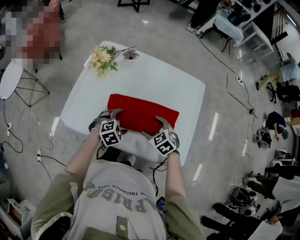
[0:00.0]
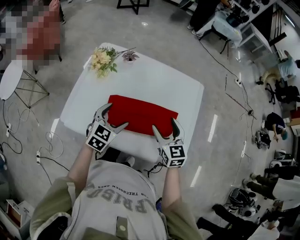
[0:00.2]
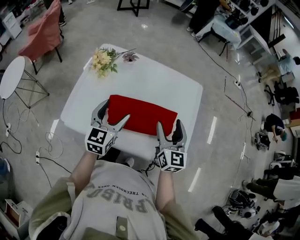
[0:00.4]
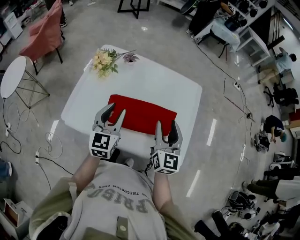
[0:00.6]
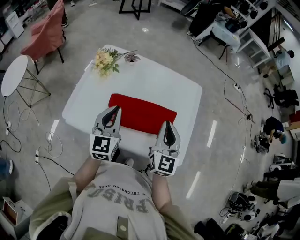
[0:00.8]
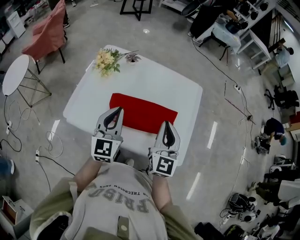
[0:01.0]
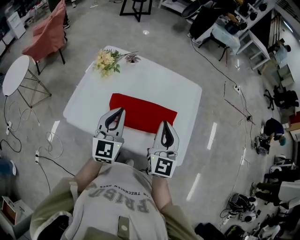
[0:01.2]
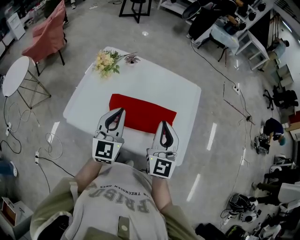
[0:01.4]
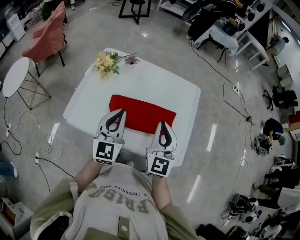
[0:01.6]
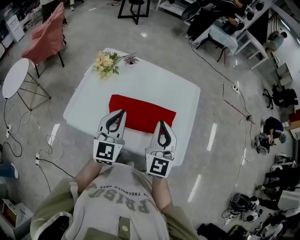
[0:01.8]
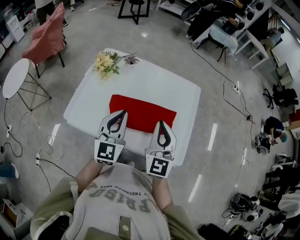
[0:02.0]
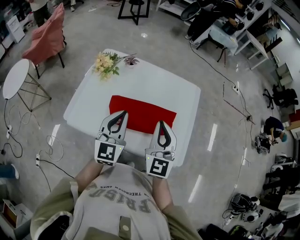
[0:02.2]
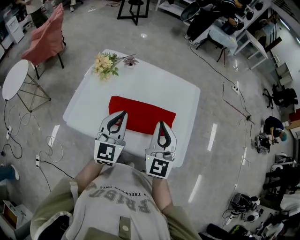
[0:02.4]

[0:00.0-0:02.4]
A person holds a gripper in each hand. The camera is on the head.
0.0 to 1.2 s: Both grippers travel together upward, some 25 cm. The left gripper tips its fingers upward by about 60 degrees, and closes, while the right gripper tips its fingers upward by about 50 degrees, and closes.
1.2 to 2.4 s: The grippers make only small movements.

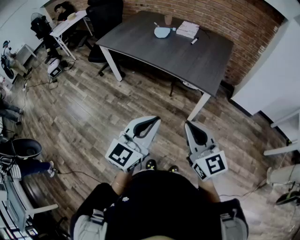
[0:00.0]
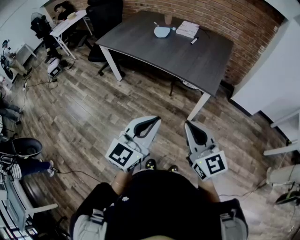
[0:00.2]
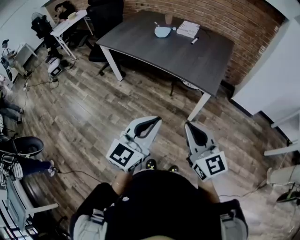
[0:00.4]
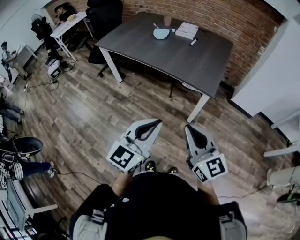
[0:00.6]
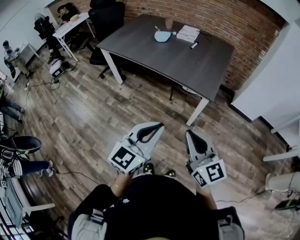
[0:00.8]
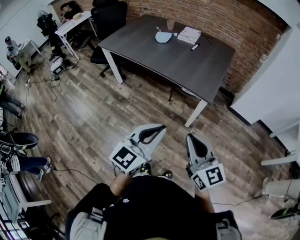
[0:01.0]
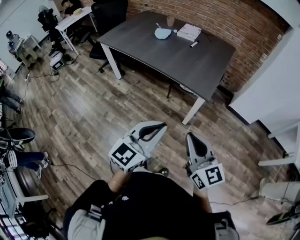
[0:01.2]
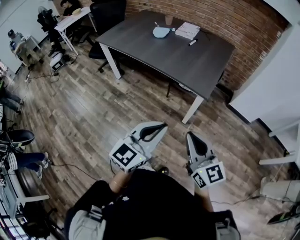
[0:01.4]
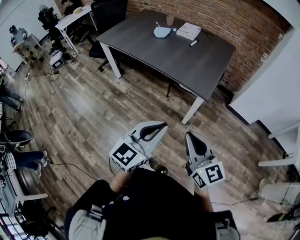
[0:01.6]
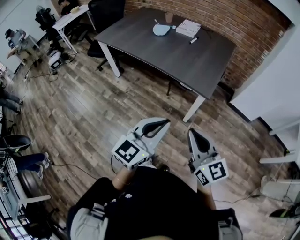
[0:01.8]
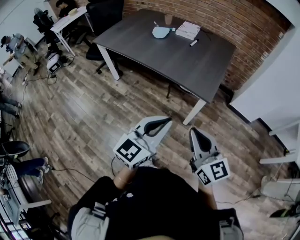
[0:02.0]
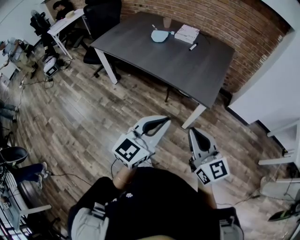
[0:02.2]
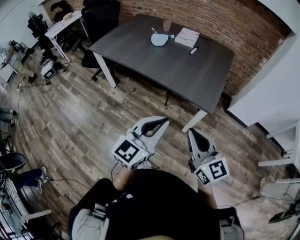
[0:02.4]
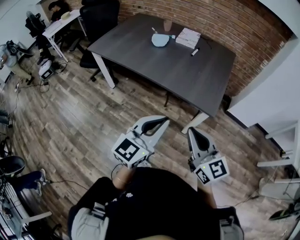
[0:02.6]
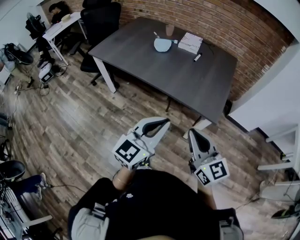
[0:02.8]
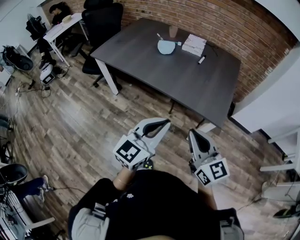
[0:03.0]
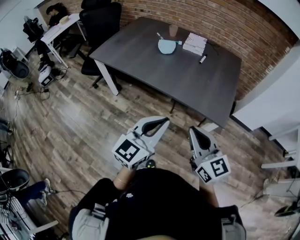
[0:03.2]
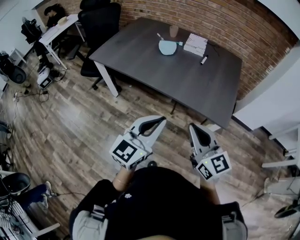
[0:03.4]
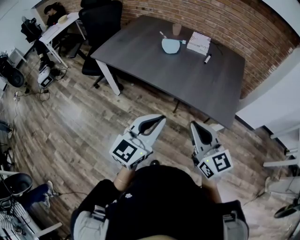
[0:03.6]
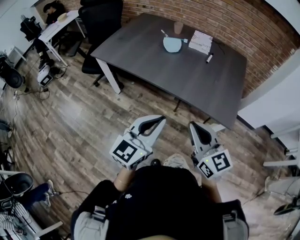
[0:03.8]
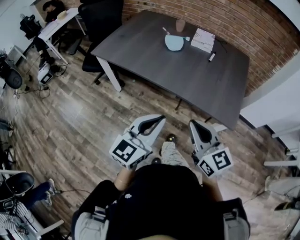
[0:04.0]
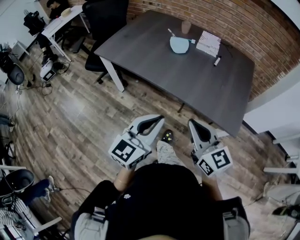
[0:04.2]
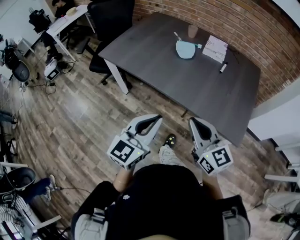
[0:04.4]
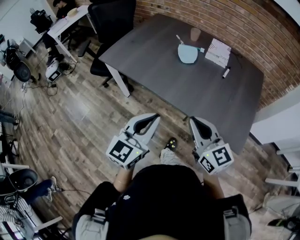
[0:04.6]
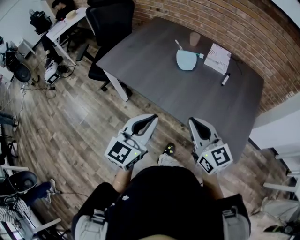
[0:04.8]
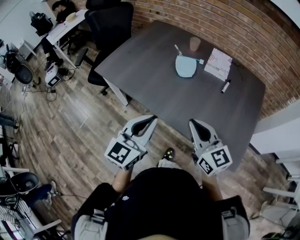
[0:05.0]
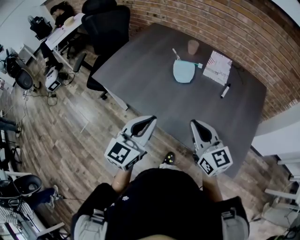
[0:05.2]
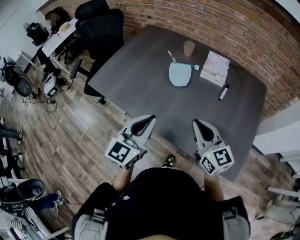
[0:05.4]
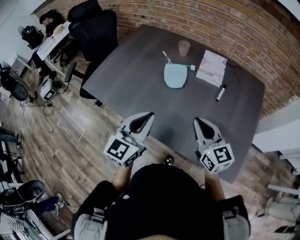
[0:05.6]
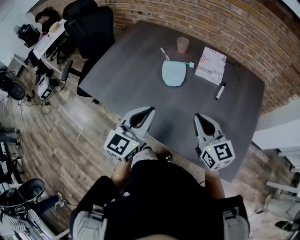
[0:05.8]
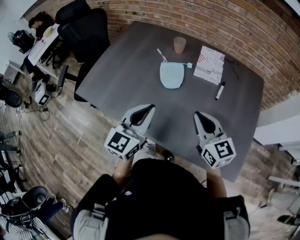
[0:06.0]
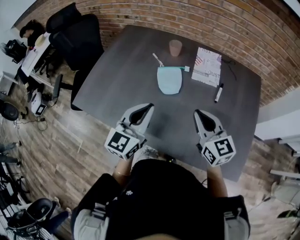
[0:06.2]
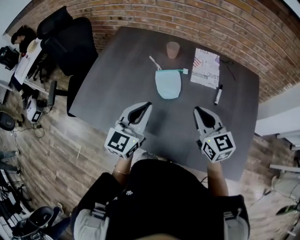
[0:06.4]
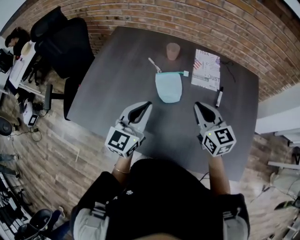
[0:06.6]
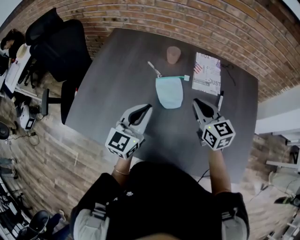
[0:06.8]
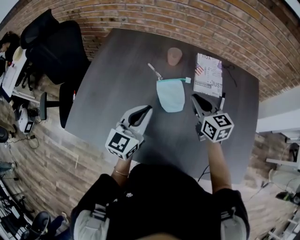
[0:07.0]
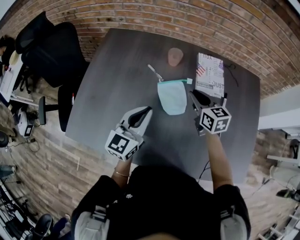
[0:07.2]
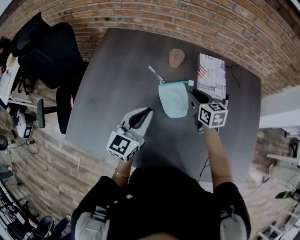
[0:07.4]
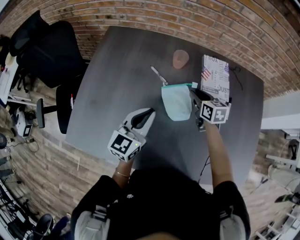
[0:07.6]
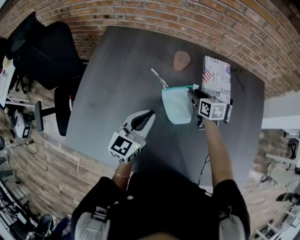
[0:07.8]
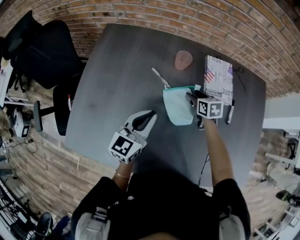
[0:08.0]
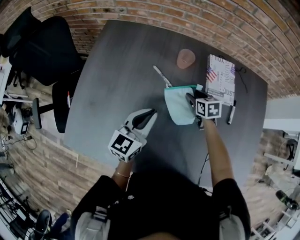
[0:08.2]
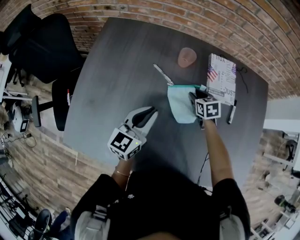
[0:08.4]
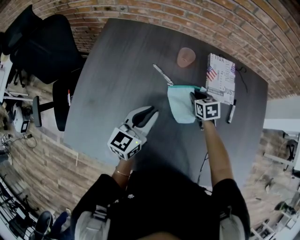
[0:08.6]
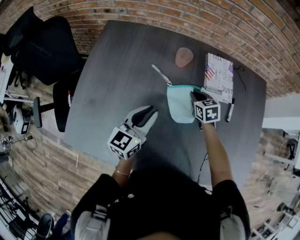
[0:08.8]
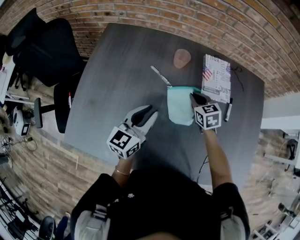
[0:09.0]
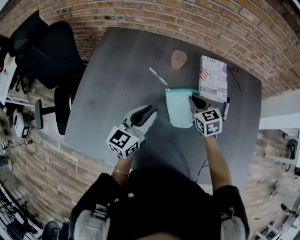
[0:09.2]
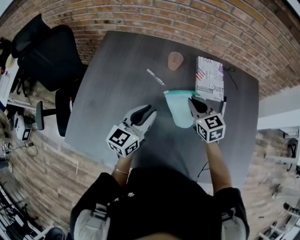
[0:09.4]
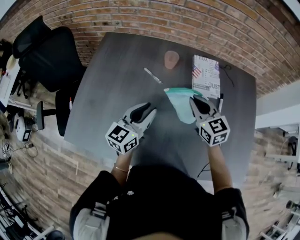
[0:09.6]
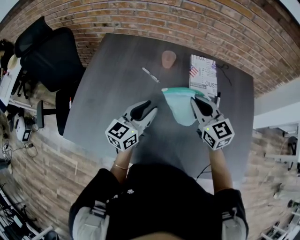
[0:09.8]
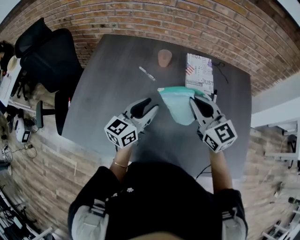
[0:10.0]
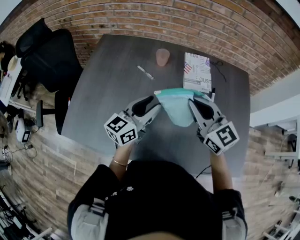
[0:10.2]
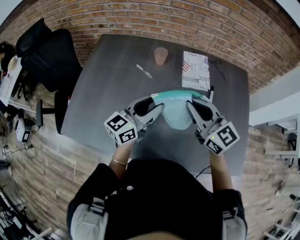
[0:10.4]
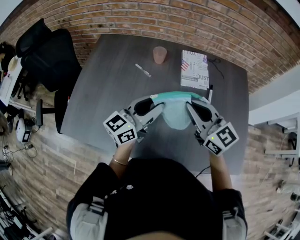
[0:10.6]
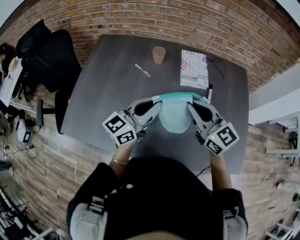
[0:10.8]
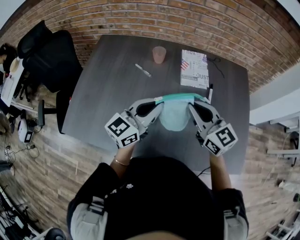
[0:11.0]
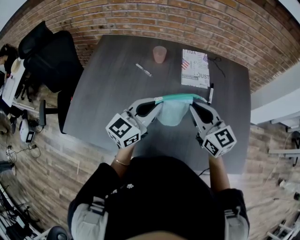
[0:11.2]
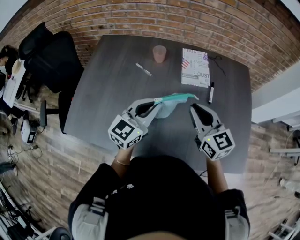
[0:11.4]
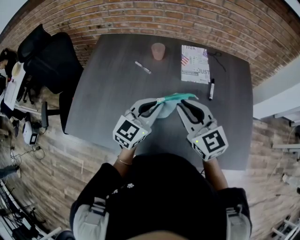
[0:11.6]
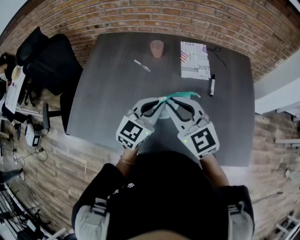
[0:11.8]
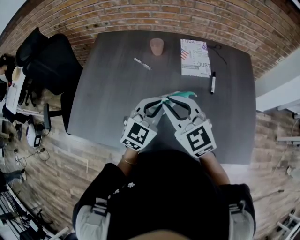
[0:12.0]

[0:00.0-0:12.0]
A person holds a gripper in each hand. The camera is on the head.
0.0 to 1.6 s: The grippers both shift to the right by approximately 10 cm.
1.6 to 3.0 s: Both grippers travel together forward and to the left, roughly 25 cm.
3.0 to 4.4 s: The left gripper goes approximately 20 cm to the left and forward, while the right gripper moves forward and to the left, about 20 cm.
4.4 to 6.0 s: Both grippers move forward, some 35 cm.
6.0 to 7.6 s: The left gripper moves forward and to the left, approximately 25 cm. Meanwhile the right gripper heads forward and downward, covering some 35 cm, swivels about 40 degrees, and opens up.
7.6 to 9.0 s: The right gripper moves some 10 cm downward and comes back, and closes up.
9.0 to 10.4 s: The left gripper is displaced to the right, upward and backward by some 15 cm. The right gripper moves upward and backward, about 30 cm, and tilts its fingers approximately 40 degrees upward.
10.4 to 12.0 s: The left gripper heads to the right, covering roughly 5 cm, turns by approximately 40 degrees, and closes. The right gripper moves to the left, about 5 cm.

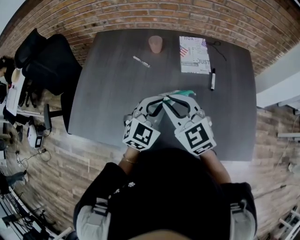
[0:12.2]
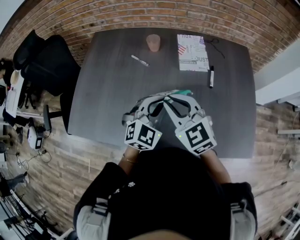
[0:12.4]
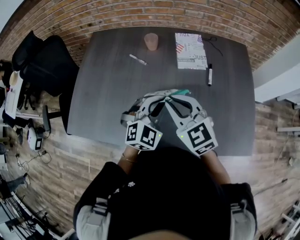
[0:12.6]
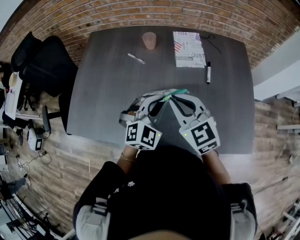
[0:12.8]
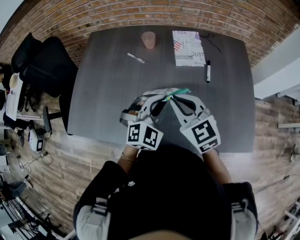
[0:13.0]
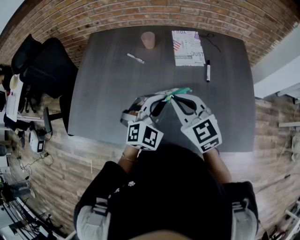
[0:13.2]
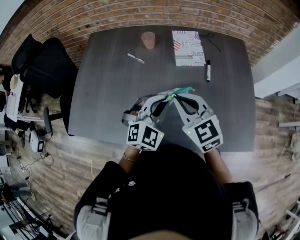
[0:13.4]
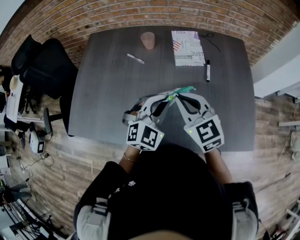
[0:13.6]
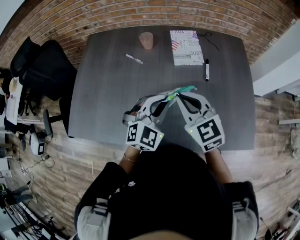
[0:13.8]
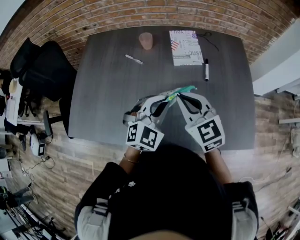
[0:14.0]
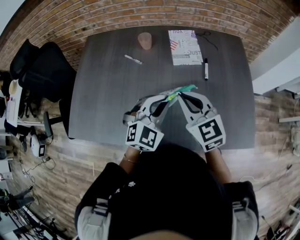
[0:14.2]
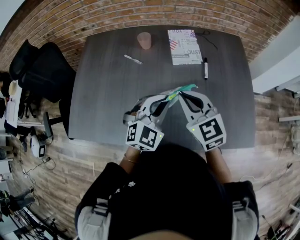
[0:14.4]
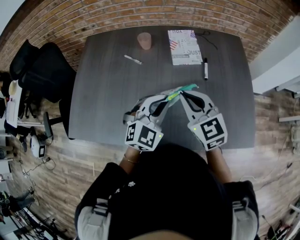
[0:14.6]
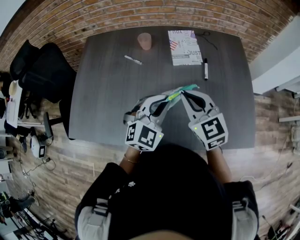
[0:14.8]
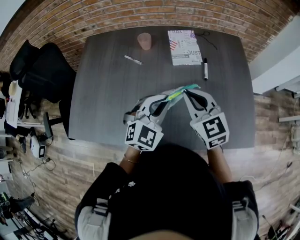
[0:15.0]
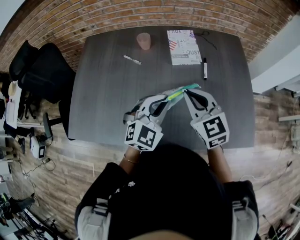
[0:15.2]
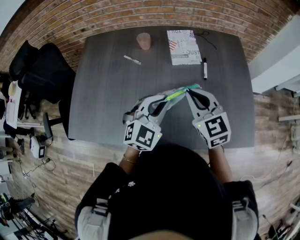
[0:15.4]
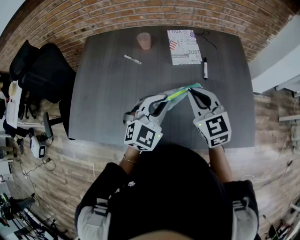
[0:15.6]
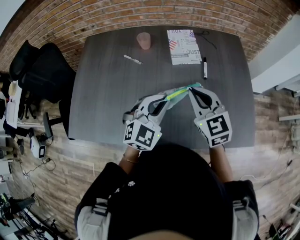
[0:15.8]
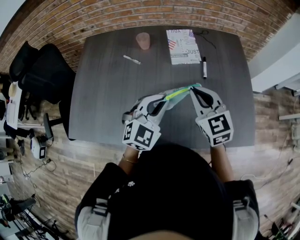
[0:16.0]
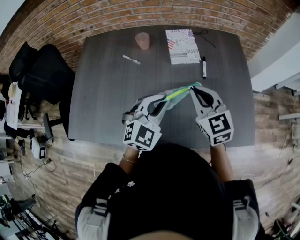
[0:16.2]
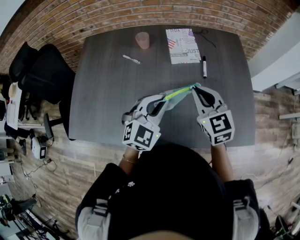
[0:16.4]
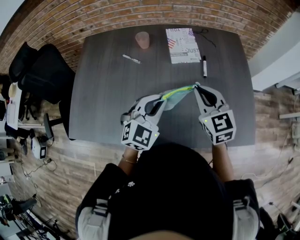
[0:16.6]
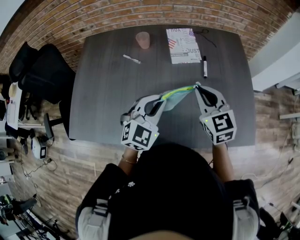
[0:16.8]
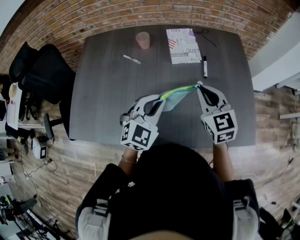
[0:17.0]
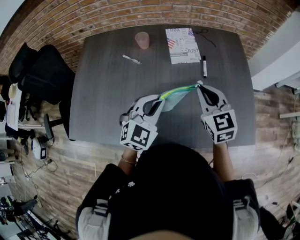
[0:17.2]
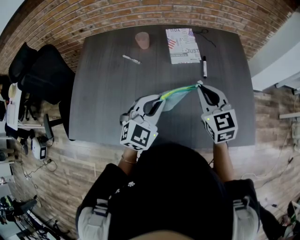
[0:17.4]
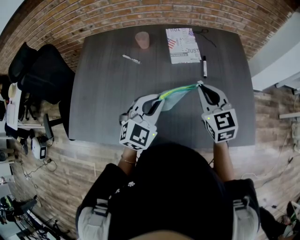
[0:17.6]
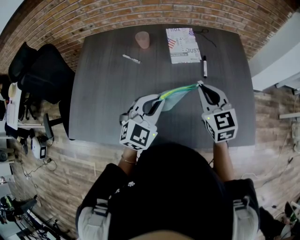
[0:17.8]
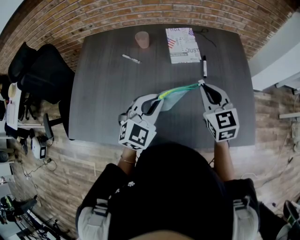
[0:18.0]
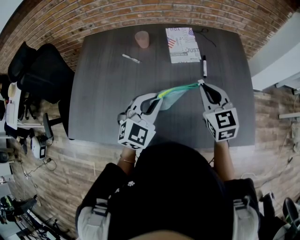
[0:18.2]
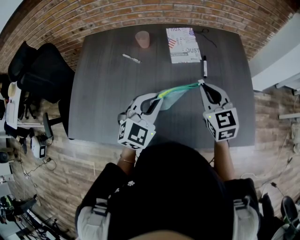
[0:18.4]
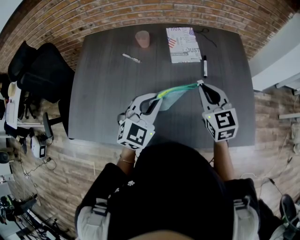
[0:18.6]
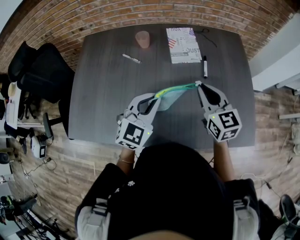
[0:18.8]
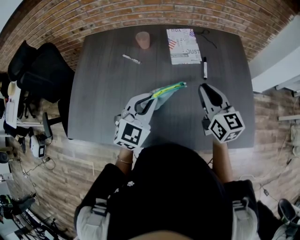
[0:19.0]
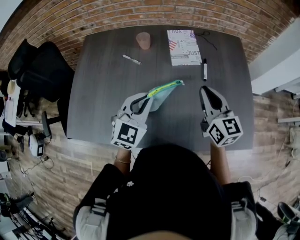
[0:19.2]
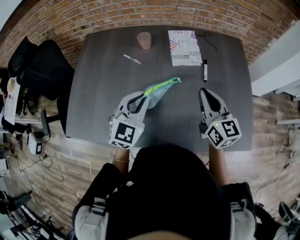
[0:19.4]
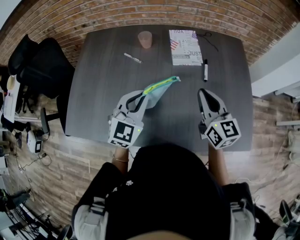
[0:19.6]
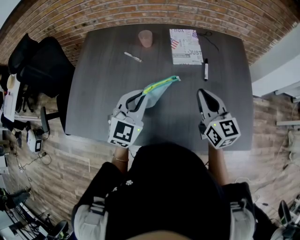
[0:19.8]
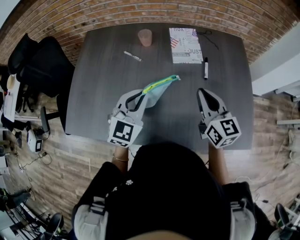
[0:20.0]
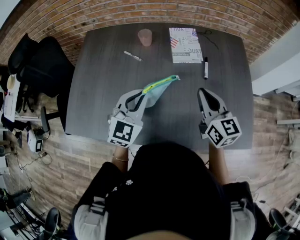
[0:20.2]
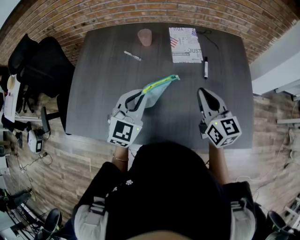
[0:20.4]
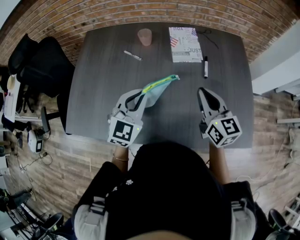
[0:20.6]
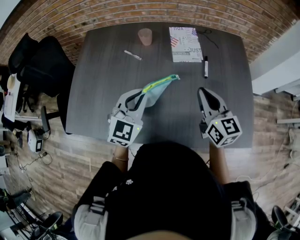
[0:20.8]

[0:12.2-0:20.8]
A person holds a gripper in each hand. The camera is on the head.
12.2 to 13.6 s: The right gripper travels to the right by approximately 5 cm.
13.6 to 15.0 s: The grippers move only a little.
15.0 to 16.6 s: The right gripper ends up roughly 5 cm from where it was.
16.6 to 18.0 s: The grippers stay close to where they were, moving slightly.
18.0 to 19.4 s: The left gripper is displaced to the left by about 5 cm. Meanwhile the right gripper changes its angle by roughly 20 degrees.
19.4 to 20.8 s: There are only small adjustments of the grippers.

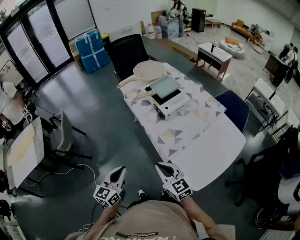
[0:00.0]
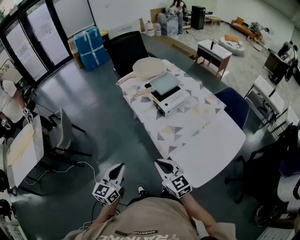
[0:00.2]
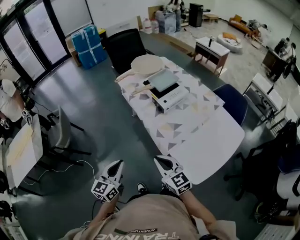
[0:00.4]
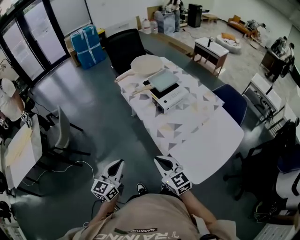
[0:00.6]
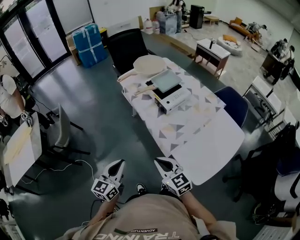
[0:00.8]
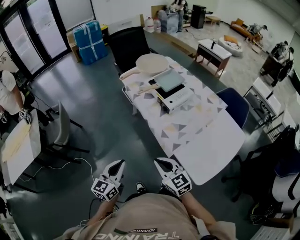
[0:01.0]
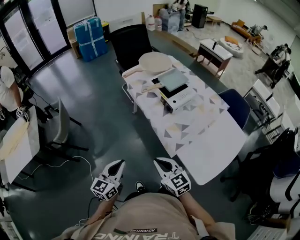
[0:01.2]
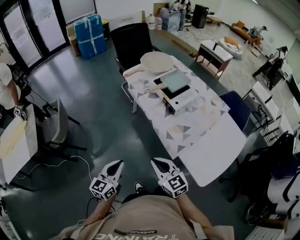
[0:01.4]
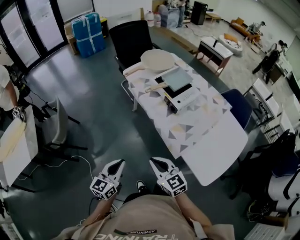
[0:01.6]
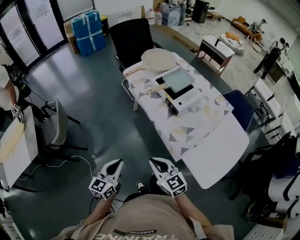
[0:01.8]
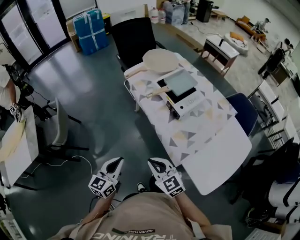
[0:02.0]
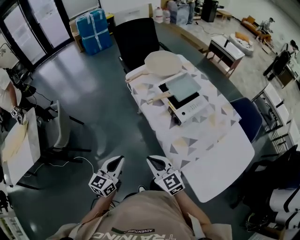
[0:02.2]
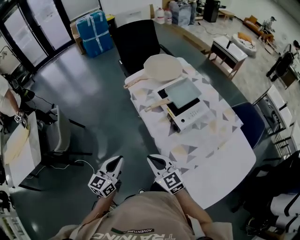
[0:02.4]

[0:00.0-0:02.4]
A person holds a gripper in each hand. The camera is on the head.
0.0 to 1.2 s: The two grippers go roughly 5 cm to the left.
1.2 to 2.4 s: The grippers both shift forward by some 15 cm.
